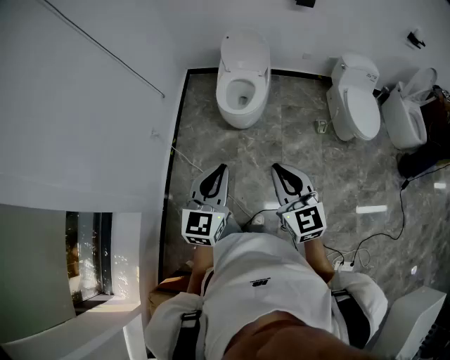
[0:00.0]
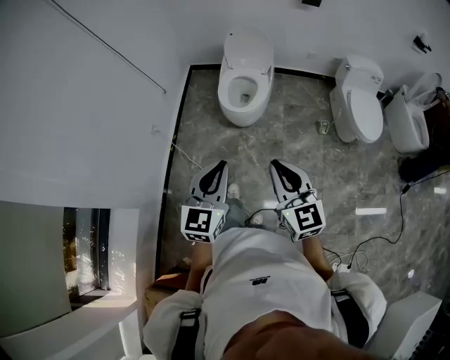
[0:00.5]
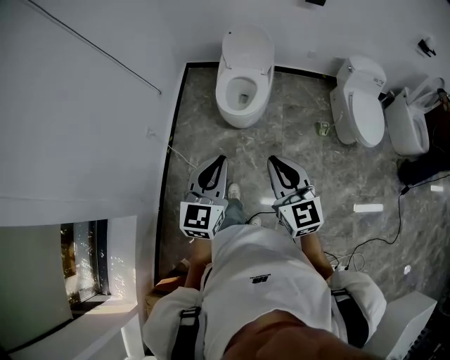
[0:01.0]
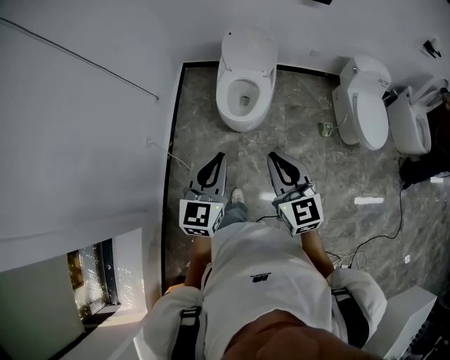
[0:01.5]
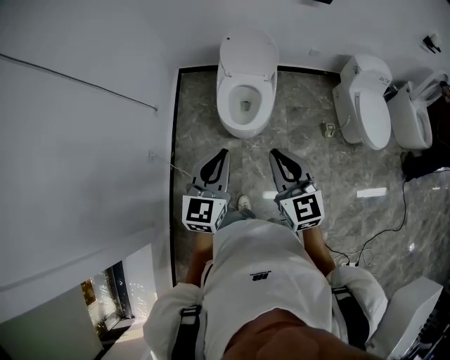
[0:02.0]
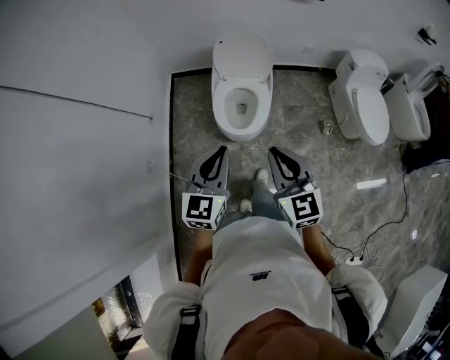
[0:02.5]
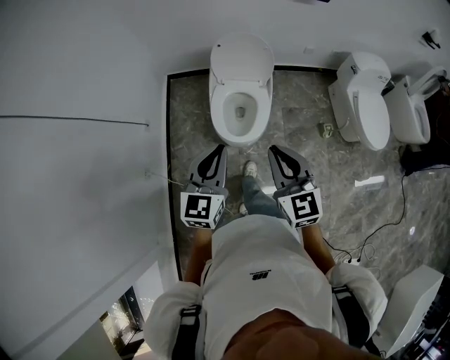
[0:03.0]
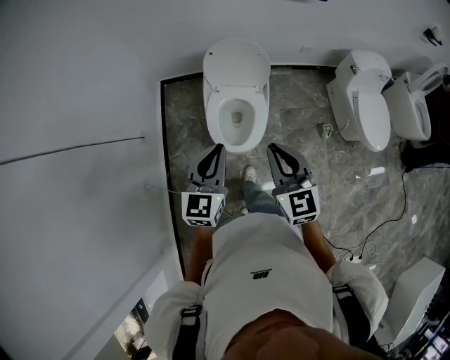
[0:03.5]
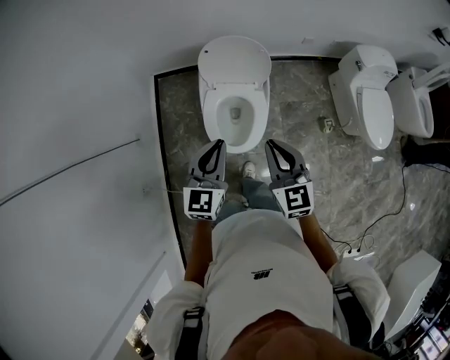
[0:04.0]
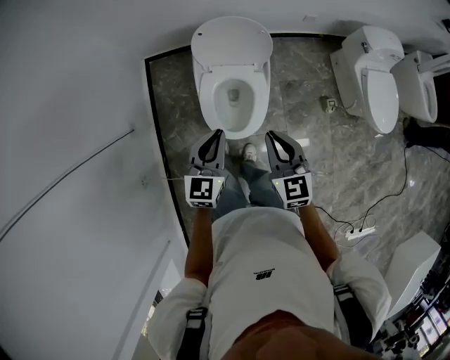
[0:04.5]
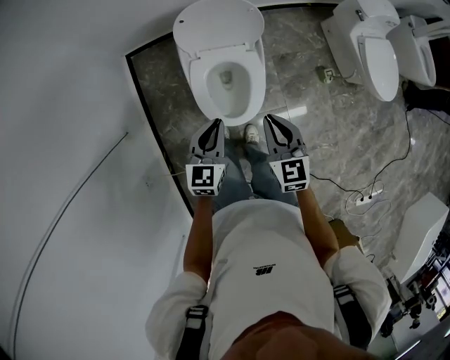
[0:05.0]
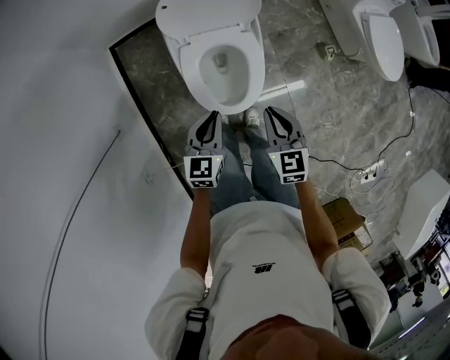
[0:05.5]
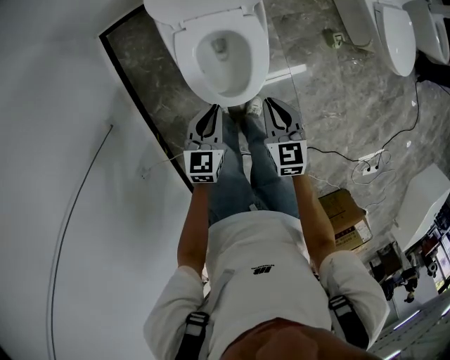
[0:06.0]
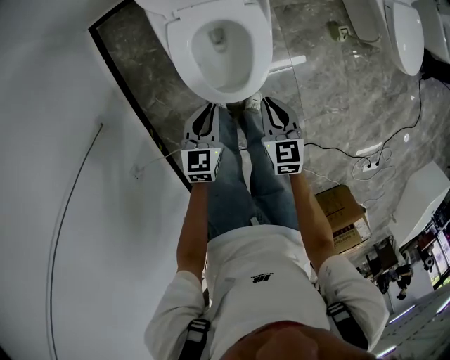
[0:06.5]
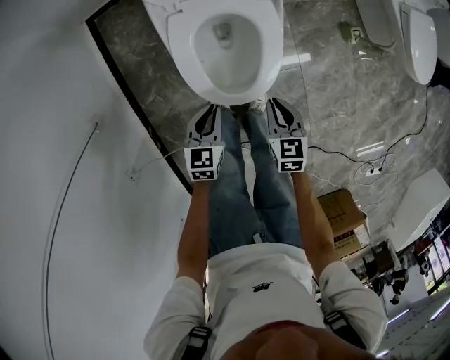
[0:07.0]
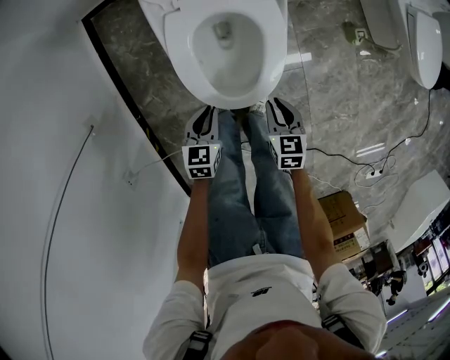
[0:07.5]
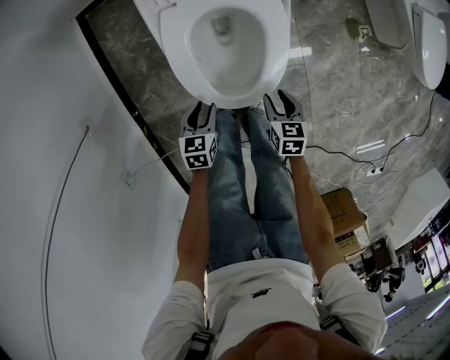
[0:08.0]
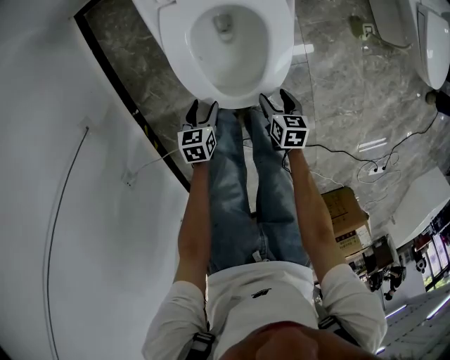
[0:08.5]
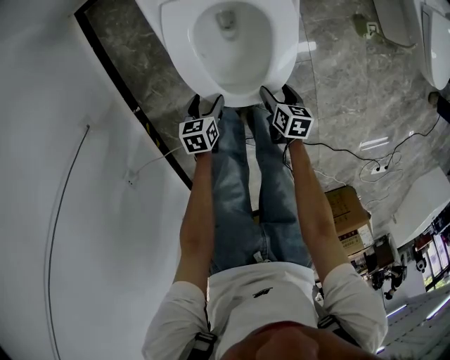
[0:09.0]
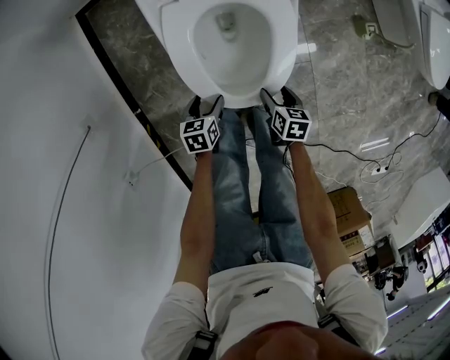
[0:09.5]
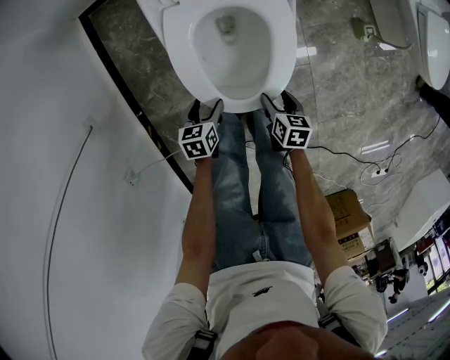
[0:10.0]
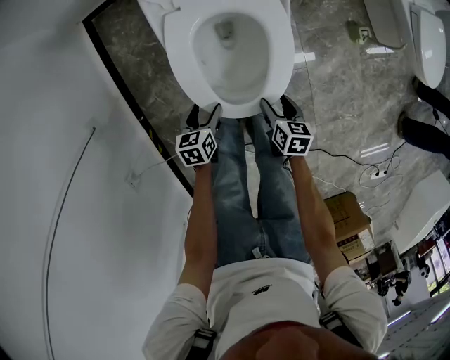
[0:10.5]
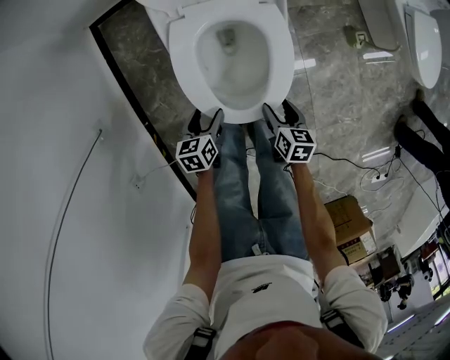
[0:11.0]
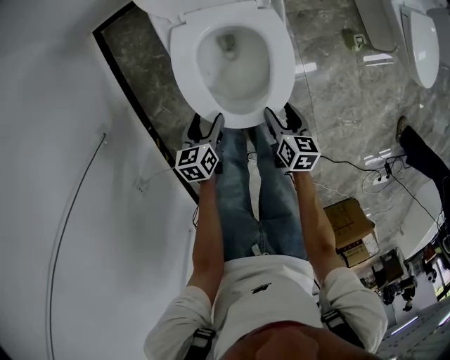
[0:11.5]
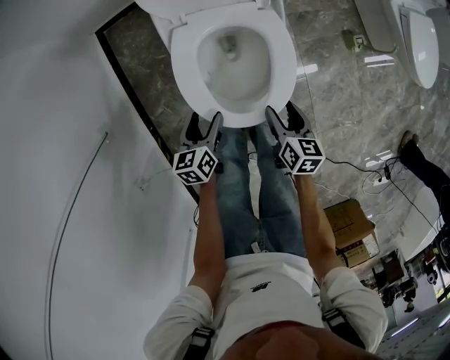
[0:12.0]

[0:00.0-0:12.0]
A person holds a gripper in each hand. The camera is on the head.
0:00.0 to 0:02.0: Both grippers move forward, roughly 30 cm.
0:02.0 to 0:04.0: The grippers both shift forward by about 30 cm.
0:04.0 to 0:06.0: Both grippers move downward, about 30 cm. The left gripper swivels roughly 30 degrees, while the right gripper changes its angle by about 30 degrees.
0:06.0 to 0:08.0: The two grippers go about 25 cm downward. The right gripper changes its angle by roughly 20 degrees, and opens up; the left gripper rotates some 20 degrees, and opens up.
0:08.0 to 0:10.0: The right gripper opens its fingers, while the left gripper opens.
0:10.0 to 0:12.0: Both grippers travel together upward, some 15 cm.

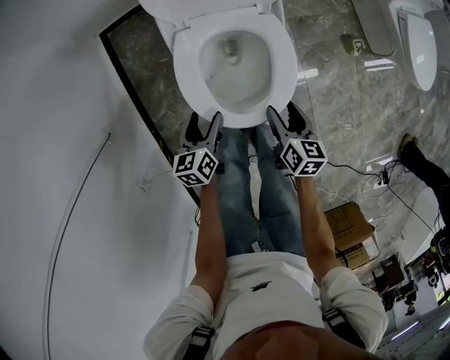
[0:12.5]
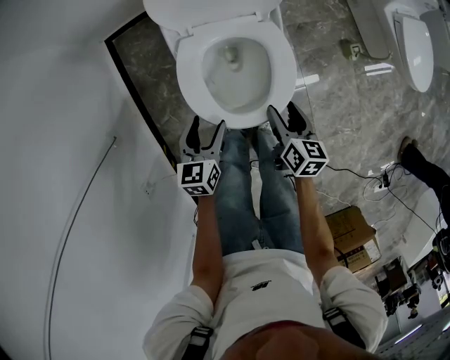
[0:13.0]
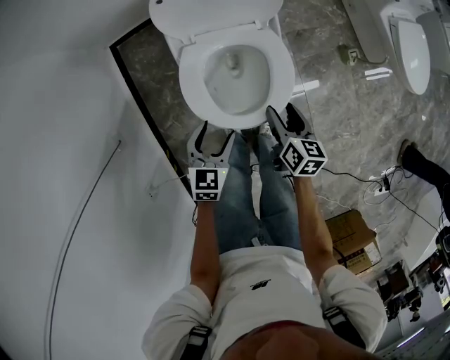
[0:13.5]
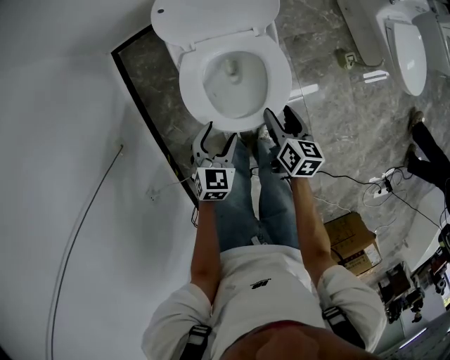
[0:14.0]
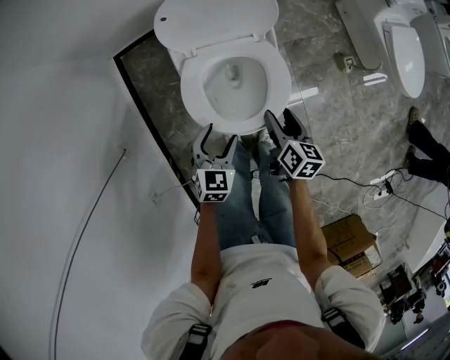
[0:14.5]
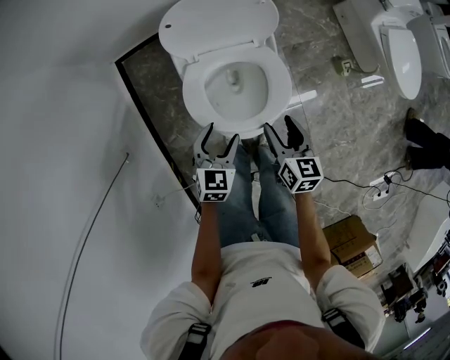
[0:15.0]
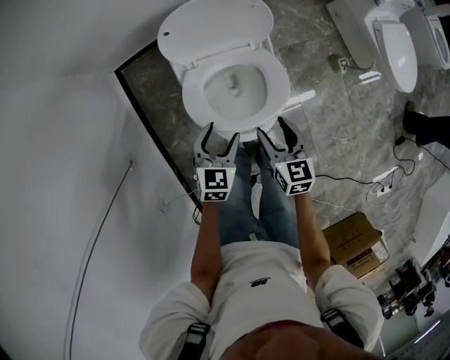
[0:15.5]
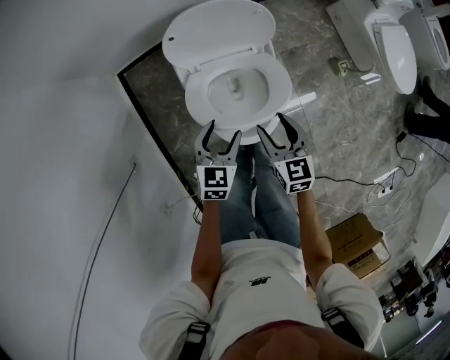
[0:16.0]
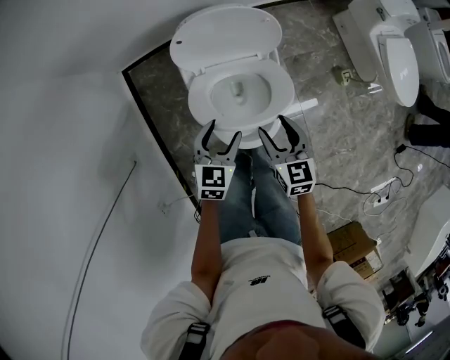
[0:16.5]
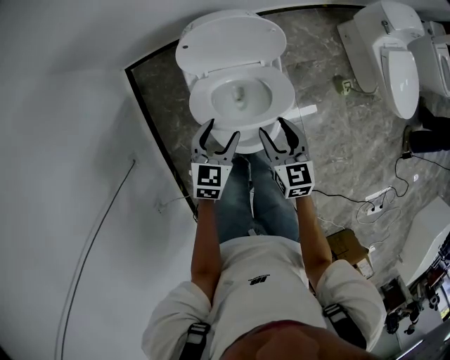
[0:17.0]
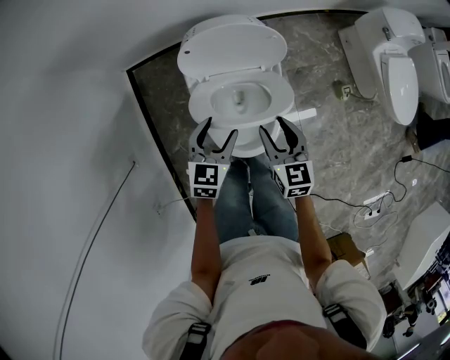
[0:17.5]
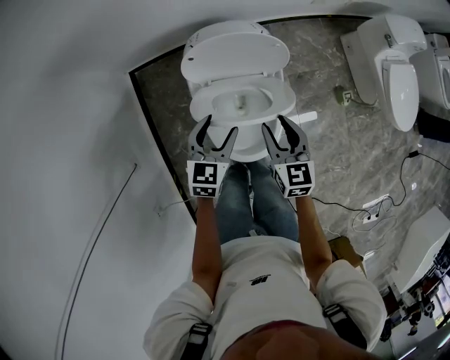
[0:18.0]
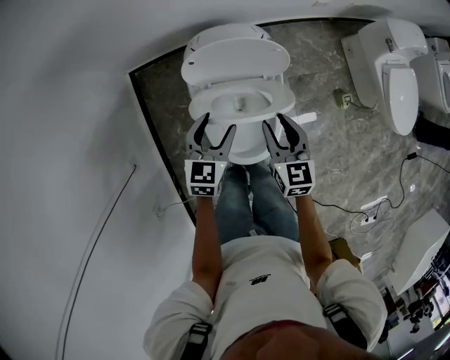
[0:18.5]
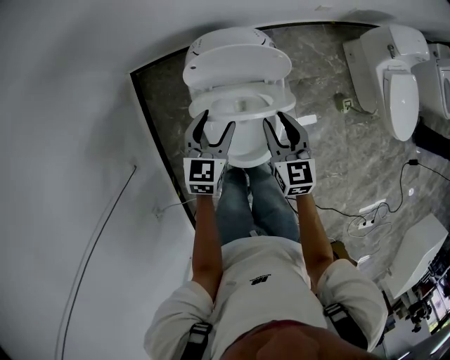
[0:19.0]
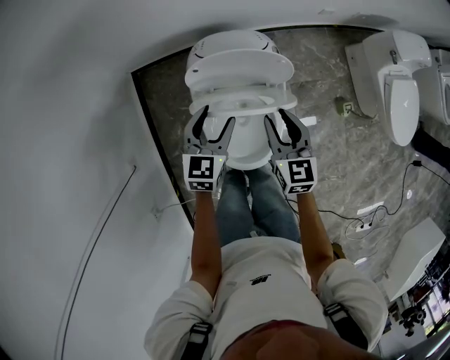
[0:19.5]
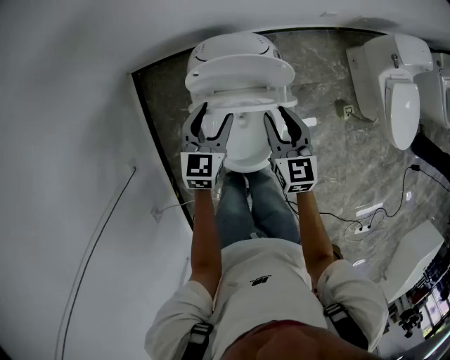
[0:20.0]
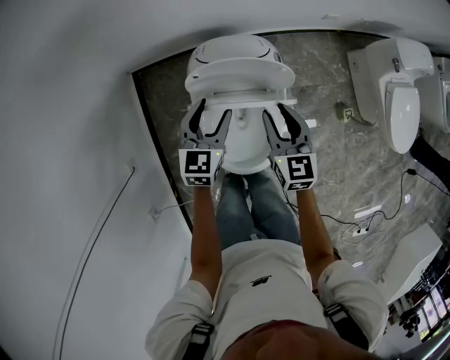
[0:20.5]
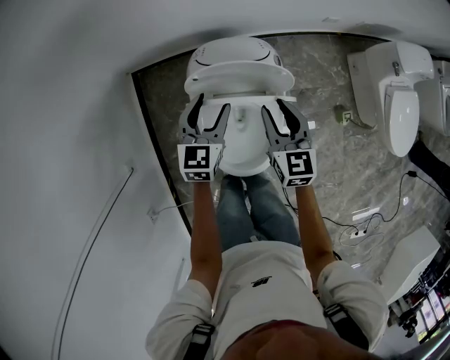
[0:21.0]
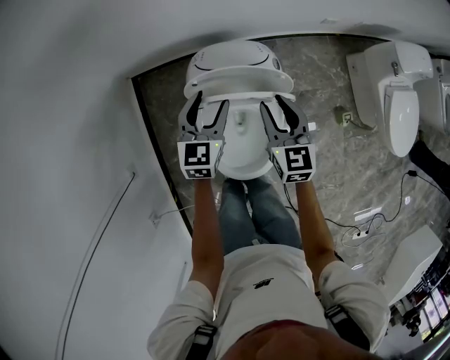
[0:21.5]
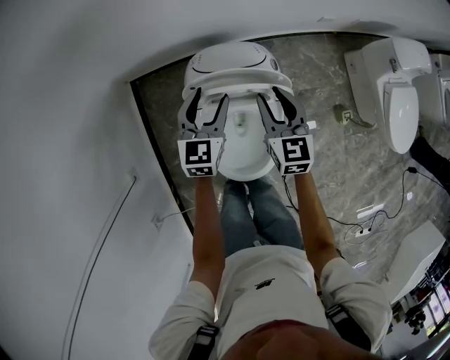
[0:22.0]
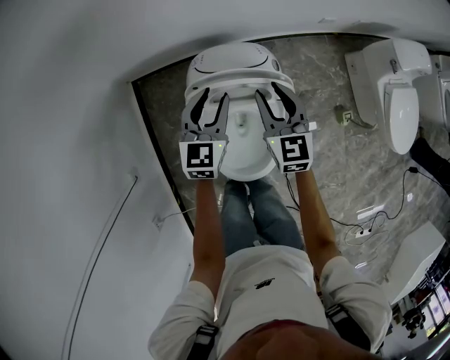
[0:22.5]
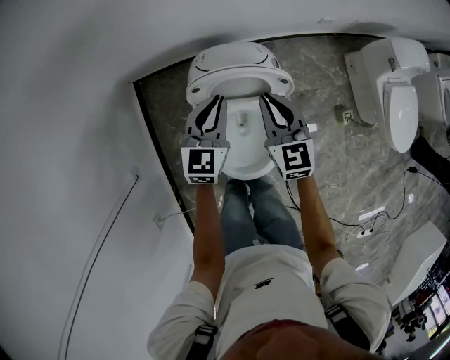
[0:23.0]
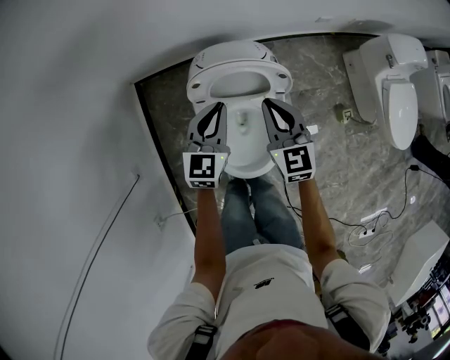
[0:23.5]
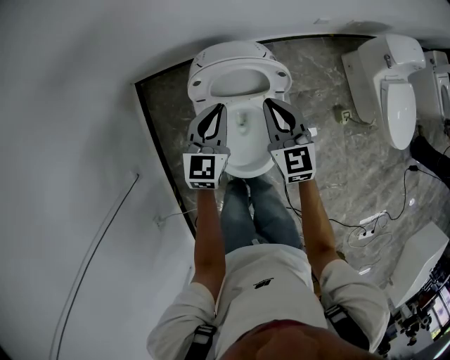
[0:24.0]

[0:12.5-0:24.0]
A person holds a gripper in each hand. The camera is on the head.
0:12.5 to 0:14.5: The left gripper is displaced upward and to the right by roughly 10 cm, and twists roughly 40 degrees clockwise, seen from behind. The right gripper travels upward and forward by roughly 10 cm.
0:14.5 to 0:16.5: The right gripper shifts roughly 10 cm upward and to the left, and turns by some 30 degrees, while the left gripper travels forward and upward by about 10 cm.
0:16.5 to 0:18.5: The grippers both shift forward by roughly 10 cm.
0:18.5 to 0:20.0: The two grippers go approximately 5 cm forward.
0:20.0 to 0:22.0: The two grippers go some 10 cm forward.
0:22.0 to 0:24.0: The two grippers go some 5 cm backward. The right gripper closes up. Meanwhile the left gripper closes up.

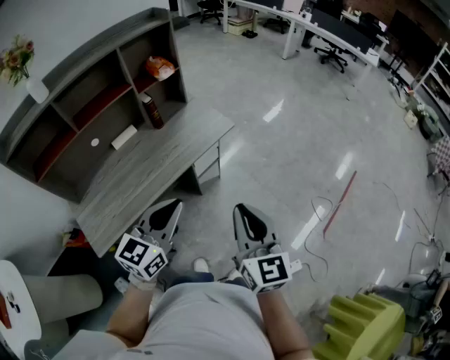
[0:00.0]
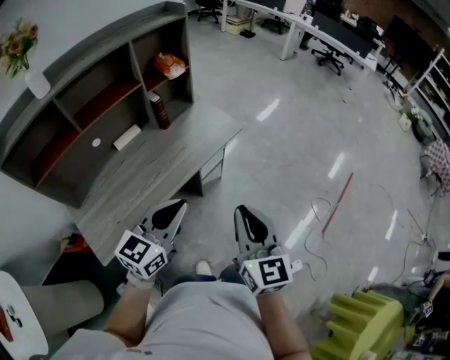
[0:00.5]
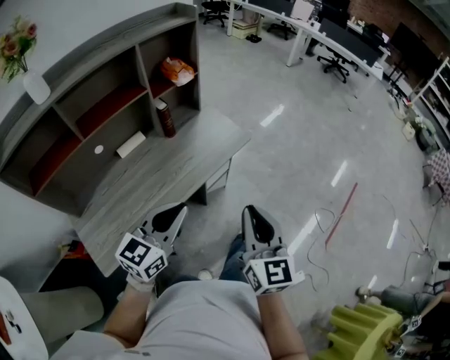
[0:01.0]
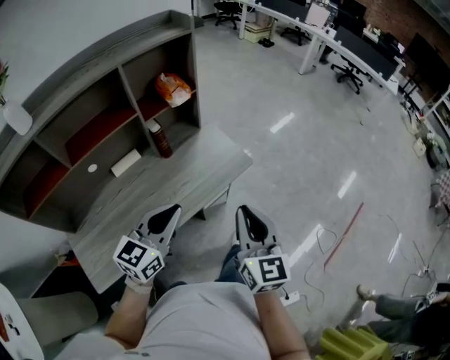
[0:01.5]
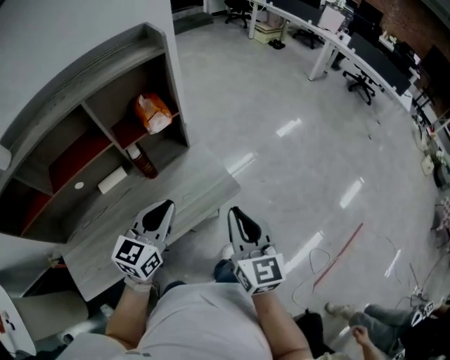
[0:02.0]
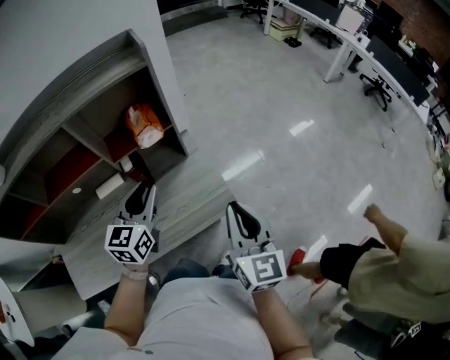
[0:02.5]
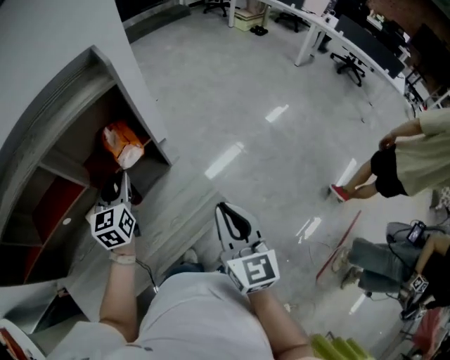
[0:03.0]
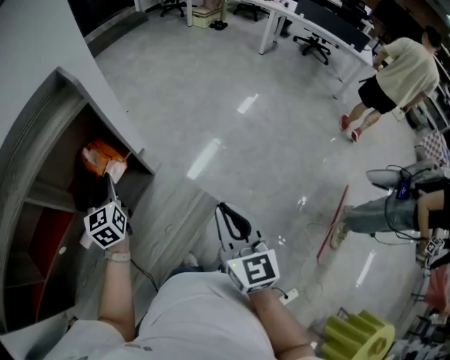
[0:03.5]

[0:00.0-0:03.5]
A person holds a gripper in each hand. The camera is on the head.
0:00.0 to 0:02.0: Both grippers are carried forward, about 40 cm.
0:02.0 to 0:03.5: The right gripper is displaced forward by roughly 15 cm. Meanwhile the left gripper goes about 30 cm forward, and swivels roughly 30 degrees.
